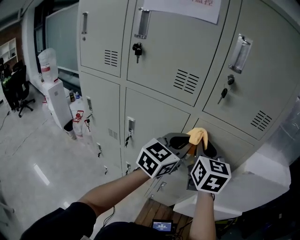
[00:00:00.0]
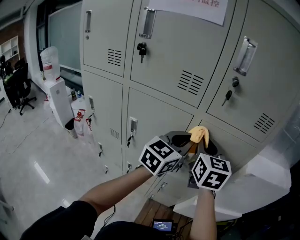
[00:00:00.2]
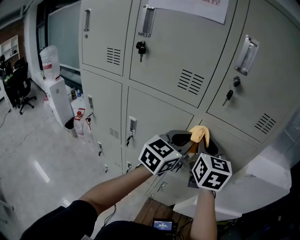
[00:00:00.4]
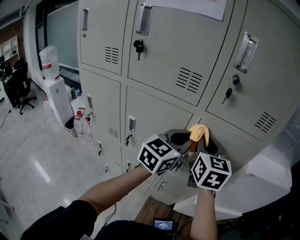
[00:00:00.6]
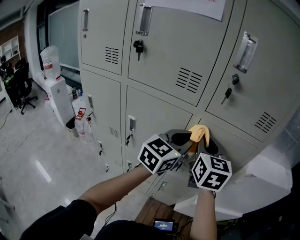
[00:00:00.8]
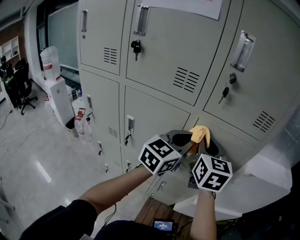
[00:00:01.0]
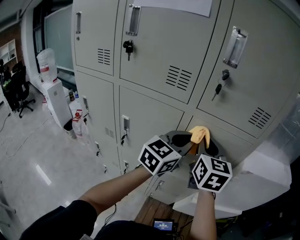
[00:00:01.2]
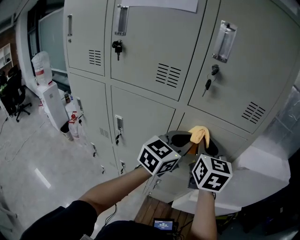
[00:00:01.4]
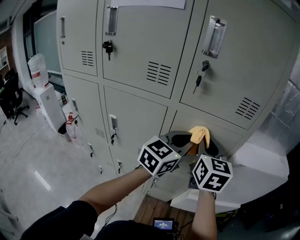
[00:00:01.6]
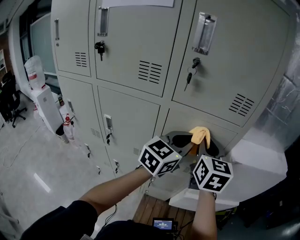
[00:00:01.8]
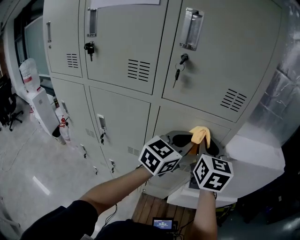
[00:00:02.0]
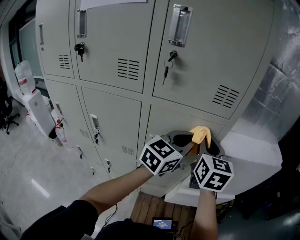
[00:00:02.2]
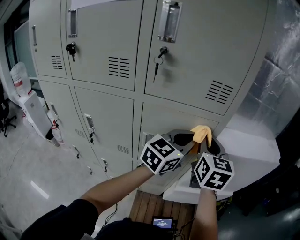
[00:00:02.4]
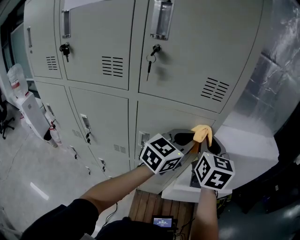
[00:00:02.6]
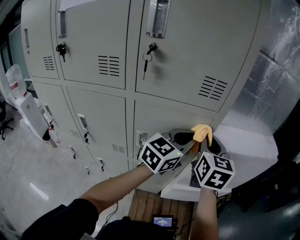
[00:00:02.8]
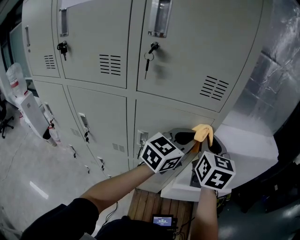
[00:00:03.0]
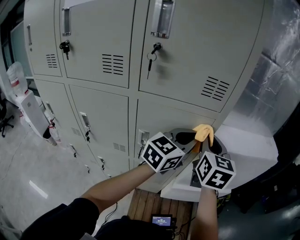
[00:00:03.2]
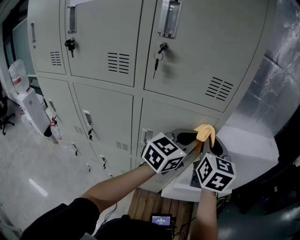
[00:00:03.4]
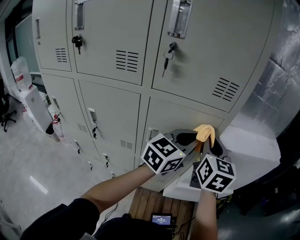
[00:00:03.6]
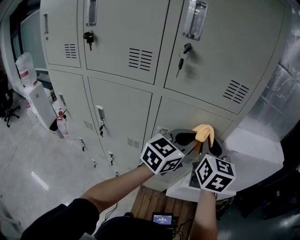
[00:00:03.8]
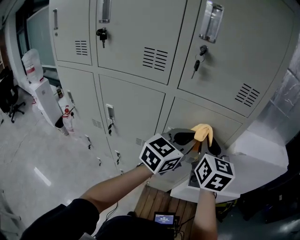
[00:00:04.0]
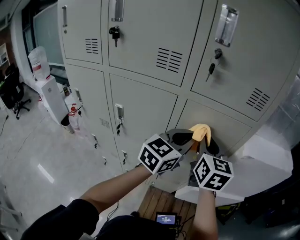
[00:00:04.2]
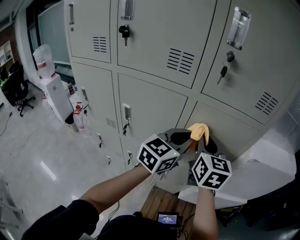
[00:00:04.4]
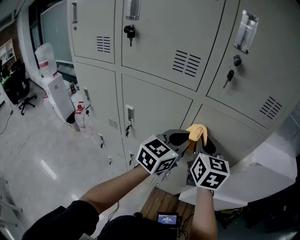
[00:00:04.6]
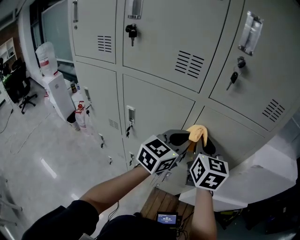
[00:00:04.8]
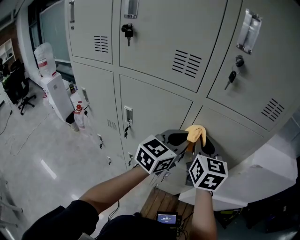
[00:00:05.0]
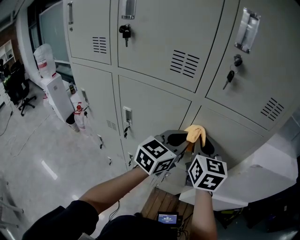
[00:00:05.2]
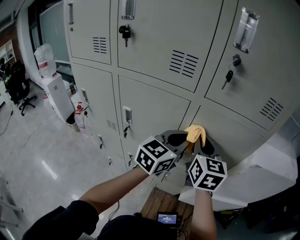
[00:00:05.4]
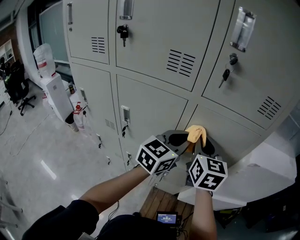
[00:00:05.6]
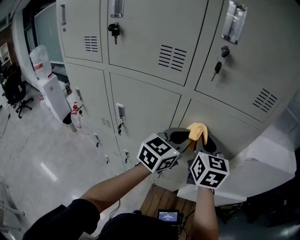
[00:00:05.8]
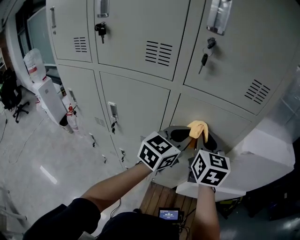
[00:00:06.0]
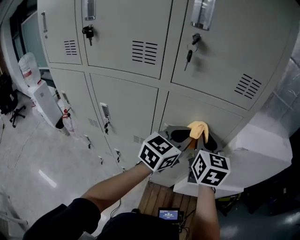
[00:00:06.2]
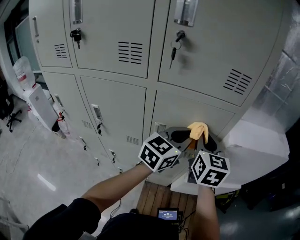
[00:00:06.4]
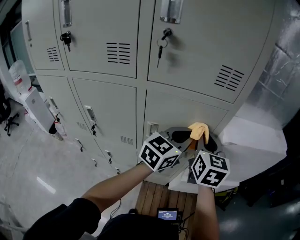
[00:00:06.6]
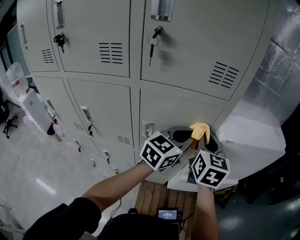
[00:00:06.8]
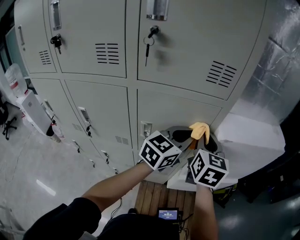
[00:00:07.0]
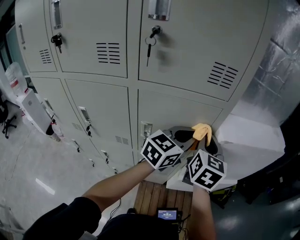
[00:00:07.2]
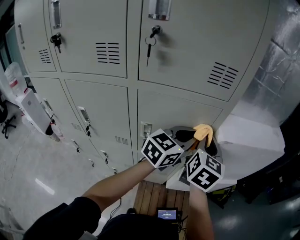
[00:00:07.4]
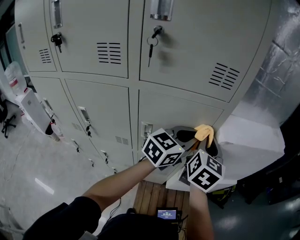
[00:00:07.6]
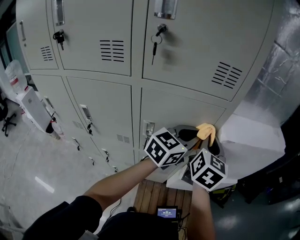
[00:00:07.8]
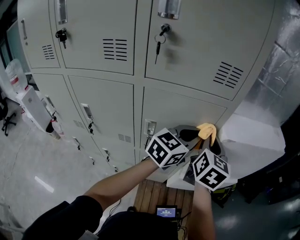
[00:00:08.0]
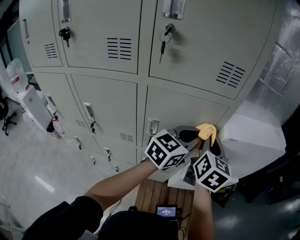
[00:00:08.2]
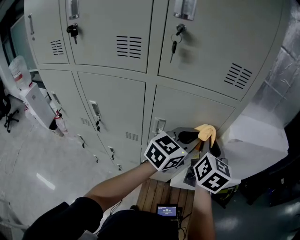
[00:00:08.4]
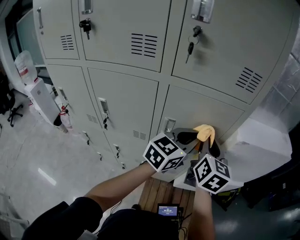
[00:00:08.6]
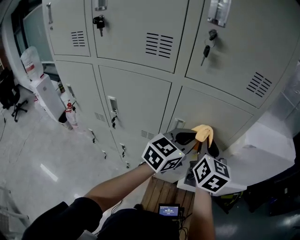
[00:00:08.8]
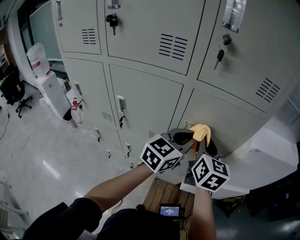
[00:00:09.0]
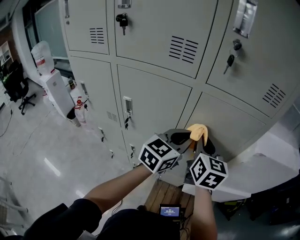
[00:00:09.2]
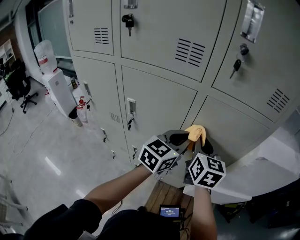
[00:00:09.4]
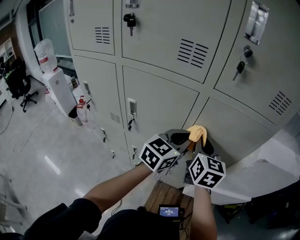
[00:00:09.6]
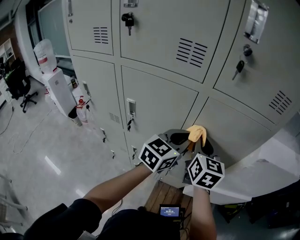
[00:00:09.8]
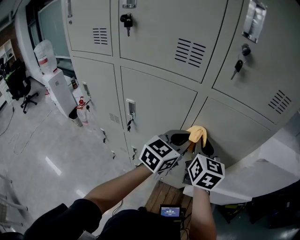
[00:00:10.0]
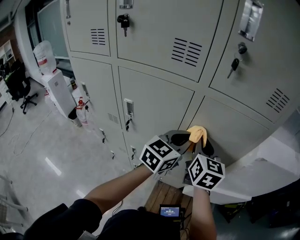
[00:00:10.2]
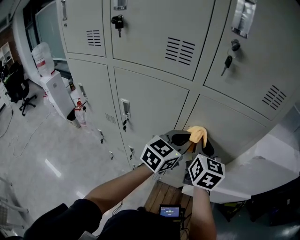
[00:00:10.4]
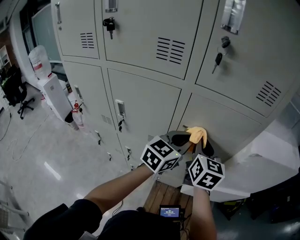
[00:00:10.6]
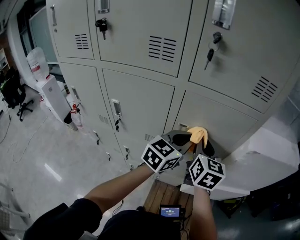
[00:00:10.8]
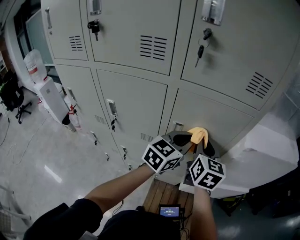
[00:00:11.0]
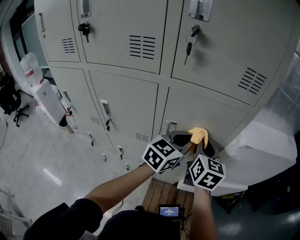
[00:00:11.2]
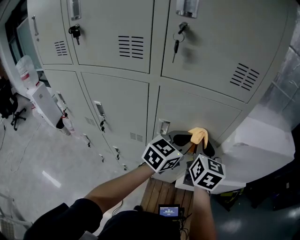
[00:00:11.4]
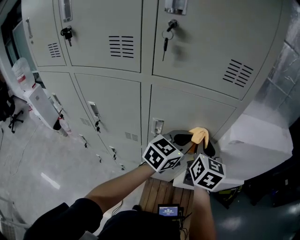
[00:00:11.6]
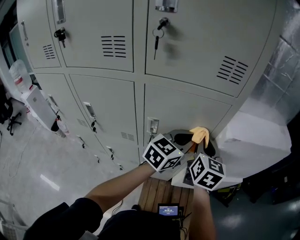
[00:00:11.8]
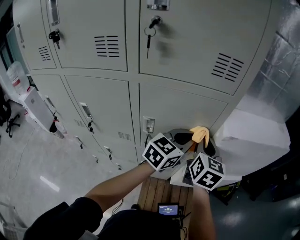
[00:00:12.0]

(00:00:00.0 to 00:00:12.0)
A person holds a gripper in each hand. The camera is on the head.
00:00:00.0 - 00:00:01.6: The grippers both shift to the right by roughly 10 cm.
00:00:01.6 - 00:00:03.0: Both grippers move to the right, approximately 15 cm.
00:00:03.0 - 00:00:04.4: The right gripper moves to the left, some 20 cm, while the left gripper shifts about 20 cm to the left and backward.
00:00:04.4 - 00:00:06.0: The right gripper moves about 5 cm; the left gripper changes place by some 5 cm.
00:00:06.0 - 00:00:07.6: The right gripper heads to the right, covering some 15 cm, and swivels roughly 30 degrees; the left gripper goes roughly 15 cm to the right and forward.
00:00:07.6 - 00:00:09.0: Both grippers move to the left and backward, roughly 15 cm. The right gripper swivels about 20 degrees.
00:00:10.4 - 00:00:12.0: The grippers both shift to the right by approximately 15 cm.

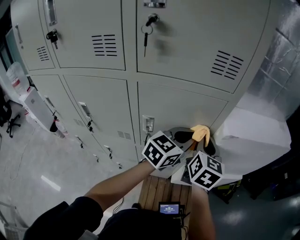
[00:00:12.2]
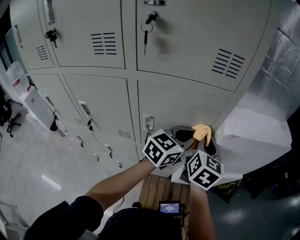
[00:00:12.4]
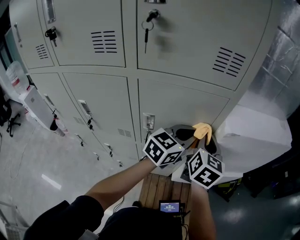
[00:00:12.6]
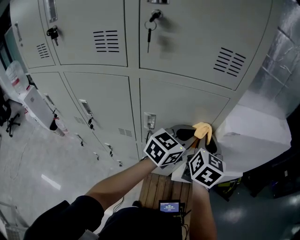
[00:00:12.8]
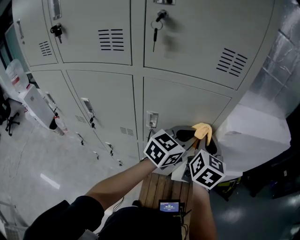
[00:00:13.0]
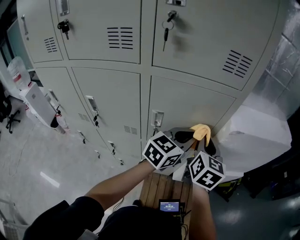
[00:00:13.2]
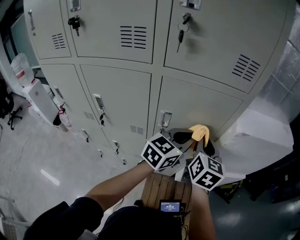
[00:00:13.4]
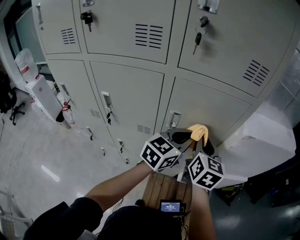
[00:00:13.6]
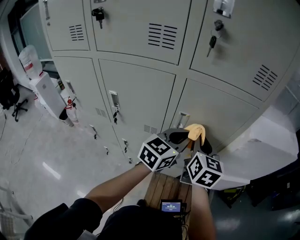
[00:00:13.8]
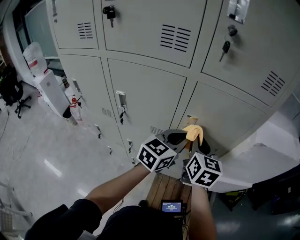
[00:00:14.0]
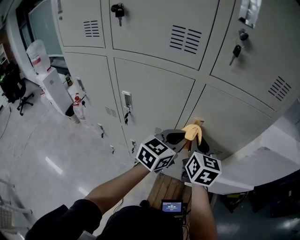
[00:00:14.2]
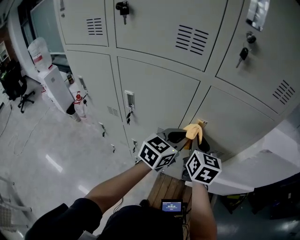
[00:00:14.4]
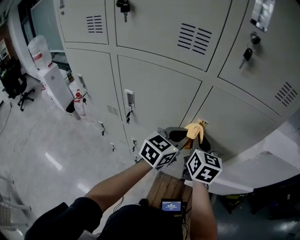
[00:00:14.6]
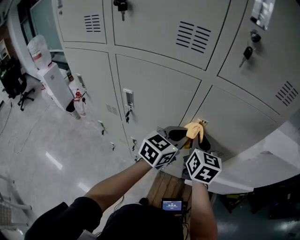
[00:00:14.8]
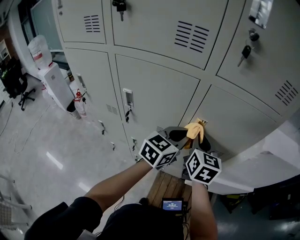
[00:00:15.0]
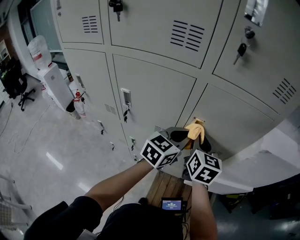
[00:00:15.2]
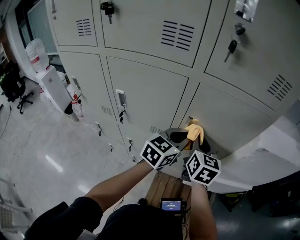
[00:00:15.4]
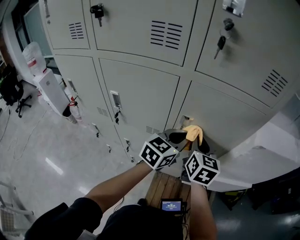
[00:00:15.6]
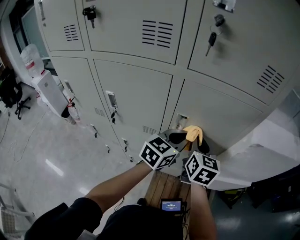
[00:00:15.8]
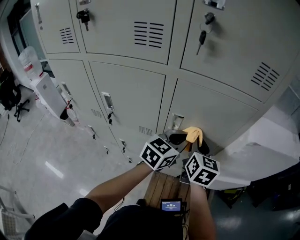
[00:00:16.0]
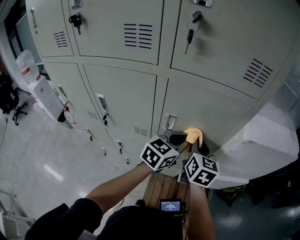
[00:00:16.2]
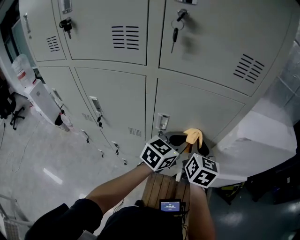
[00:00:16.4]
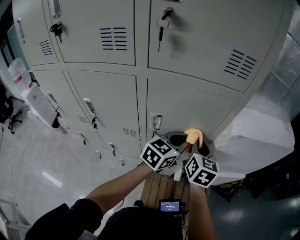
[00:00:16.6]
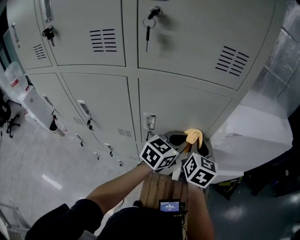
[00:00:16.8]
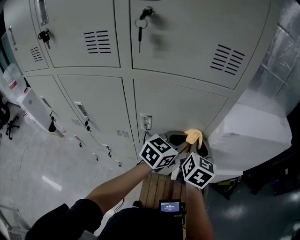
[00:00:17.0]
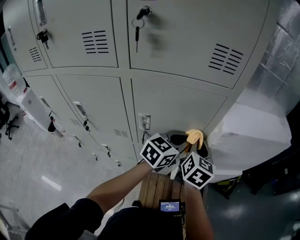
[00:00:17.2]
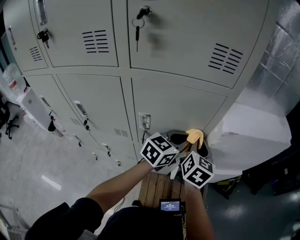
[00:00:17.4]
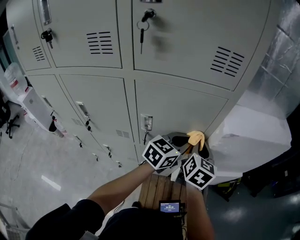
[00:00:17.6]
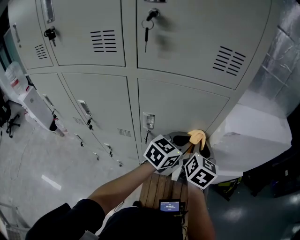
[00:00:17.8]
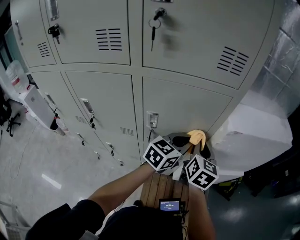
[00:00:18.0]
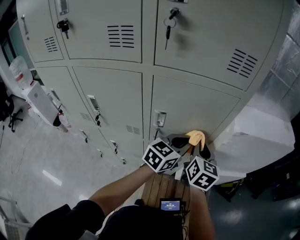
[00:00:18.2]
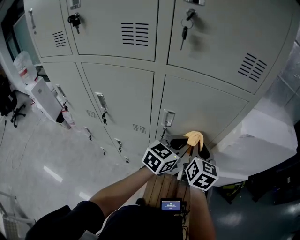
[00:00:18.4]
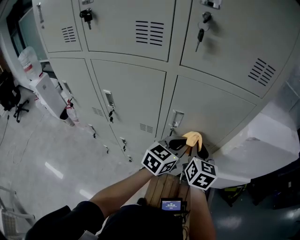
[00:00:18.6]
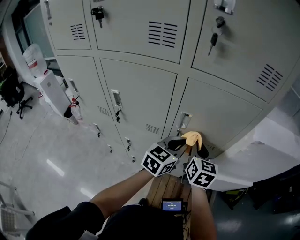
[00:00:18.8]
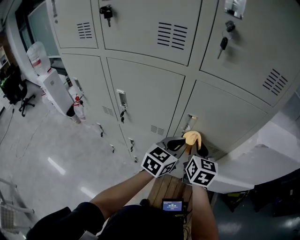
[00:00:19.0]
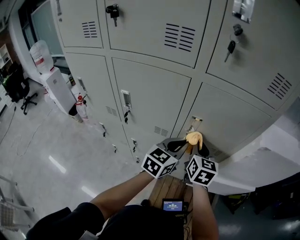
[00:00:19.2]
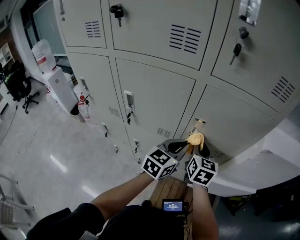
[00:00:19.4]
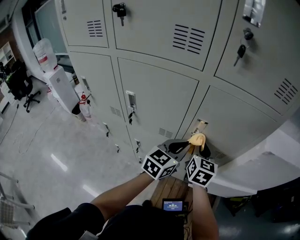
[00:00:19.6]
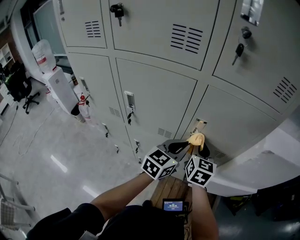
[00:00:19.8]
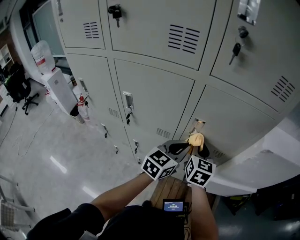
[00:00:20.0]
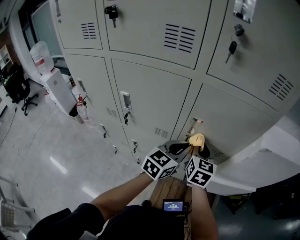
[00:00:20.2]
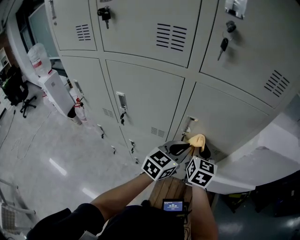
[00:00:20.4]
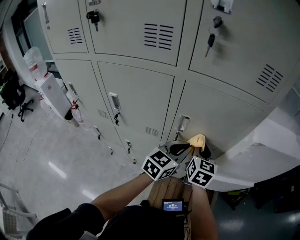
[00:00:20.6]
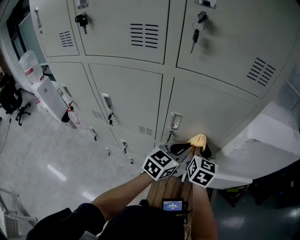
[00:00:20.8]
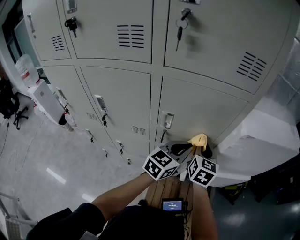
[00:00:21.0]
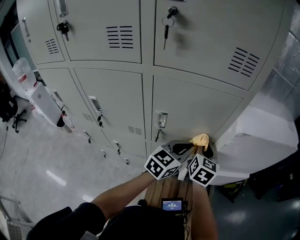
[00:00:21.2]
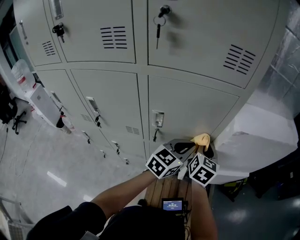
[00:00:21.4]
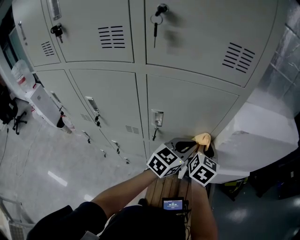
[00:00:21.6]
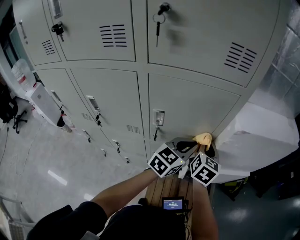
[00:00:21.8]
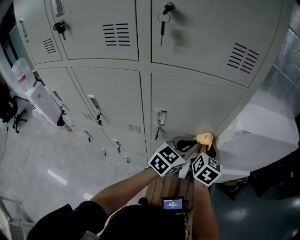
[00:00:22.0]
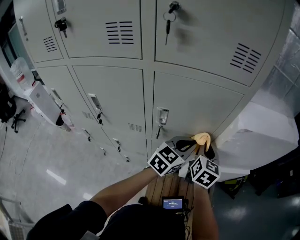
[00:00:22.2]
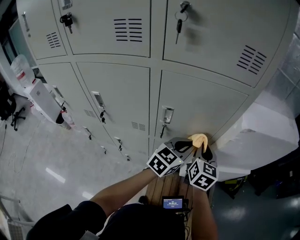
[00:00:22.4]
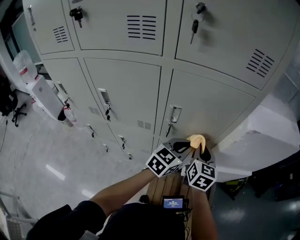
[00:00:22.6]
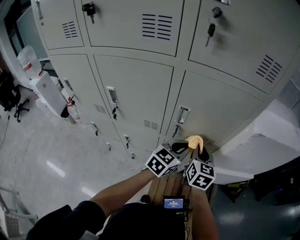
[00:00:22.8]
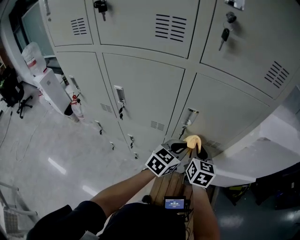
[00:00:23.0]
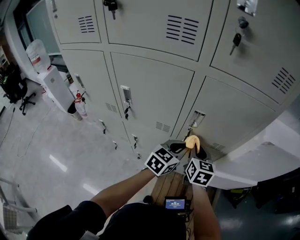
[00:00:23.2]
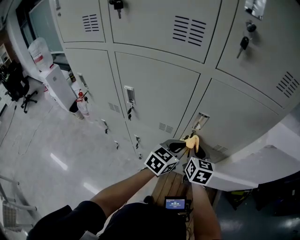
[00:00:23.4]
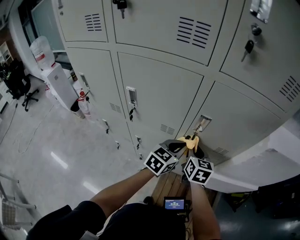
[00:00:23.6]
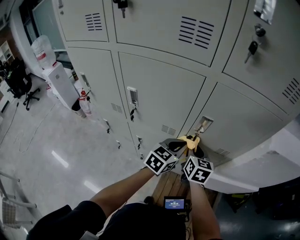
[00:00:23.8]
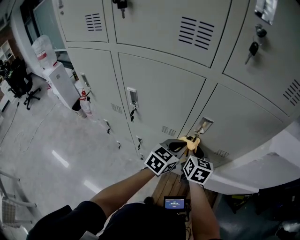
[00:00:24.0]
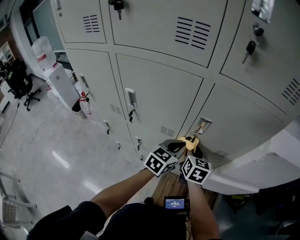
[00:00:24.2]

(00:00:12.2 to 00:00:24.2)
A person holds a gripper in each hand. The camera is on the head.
00:00:12.2 - 00:00:13.8: The grippers both shift to the left and backward by roughly 15 cm.
00:00:13.8 - 00:00:15.2: The grippers both shift to the left by roughly 5 cm.
00:00:15.2 - 00:00:16.6: Both grippers move to the right, about 15 cm.
00:00:16.6 - 00:00:18.2: The grippers make only small movements.
00:00:18.2 - 00:00:19.8: The grippers both shift to the left by about 15 cm.
00:00:19.8 - 00:00:21.2: The grippers both shift to the right by approximately 15 cm.
00:00:21.2 - 00:00:22.6: The right gripper heads backward, covering roughly 5 cm; the left gripper ends up some 5 cm from where it was.
00:00:22.6 - 00:00:24.2: Both grippers move to the left, about 15 cm.
